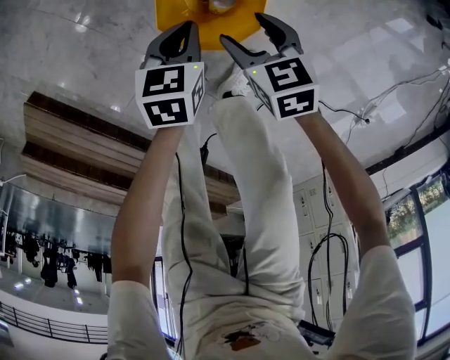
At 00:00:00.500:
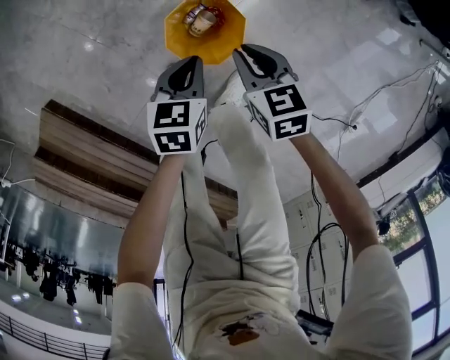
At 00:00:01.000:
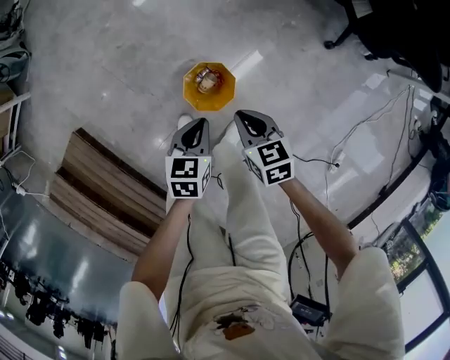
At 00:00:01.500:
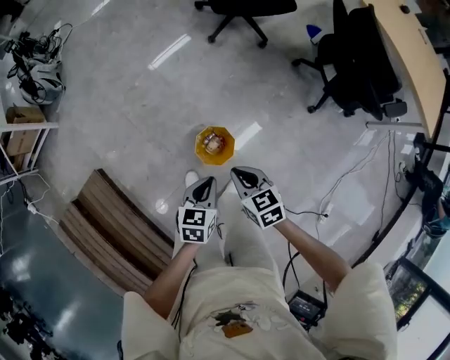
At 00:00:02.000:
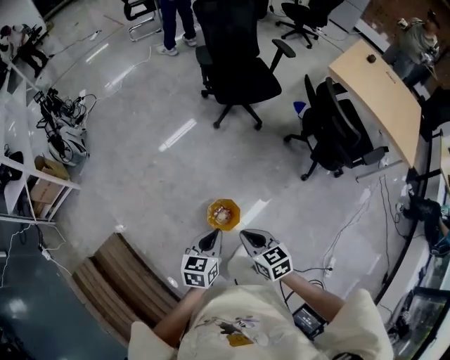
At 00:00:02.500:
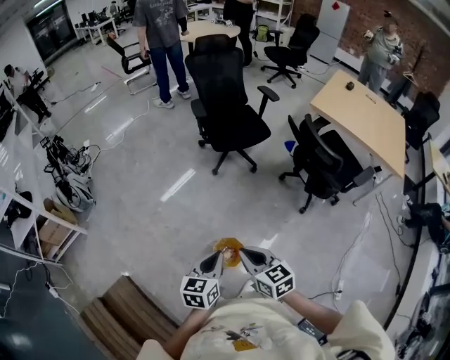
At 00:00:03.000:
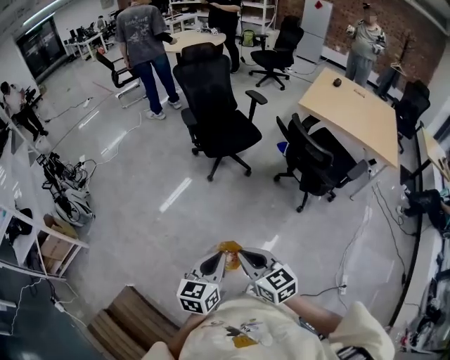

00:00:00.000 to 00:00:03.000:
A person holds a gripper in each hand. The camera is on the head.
00:00:00.000 to 00:00:01.500: Both grippers move upward, some 50 cm. The right gripper closes.
00:00:01.500 to 00:00:03.000: Both grippers move upward, some 35 cm. The right gripper changes its angle by approximately 30 degrees; the left gripper swivels roughly 30 degrees.

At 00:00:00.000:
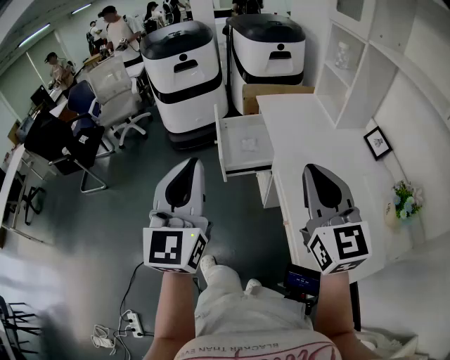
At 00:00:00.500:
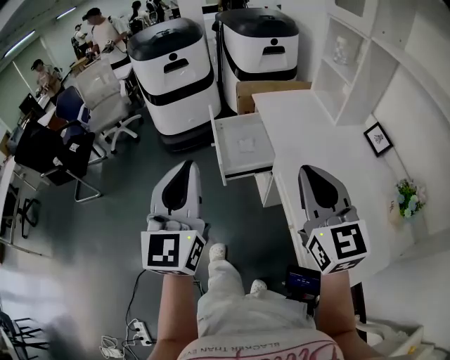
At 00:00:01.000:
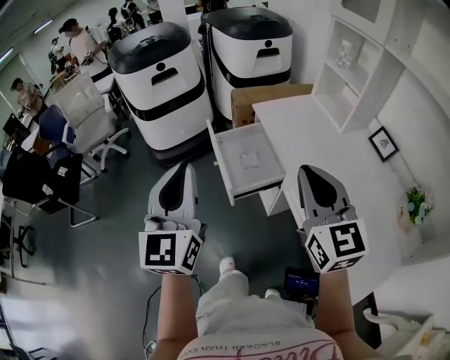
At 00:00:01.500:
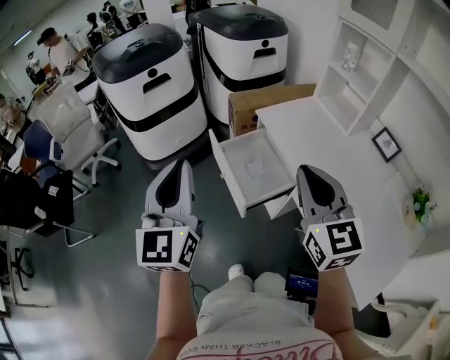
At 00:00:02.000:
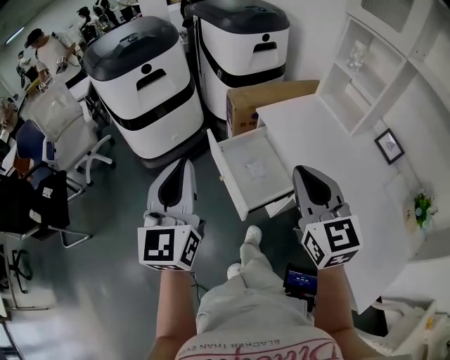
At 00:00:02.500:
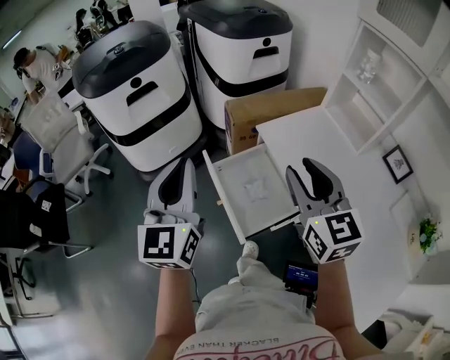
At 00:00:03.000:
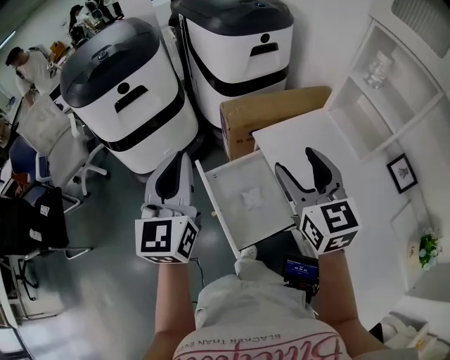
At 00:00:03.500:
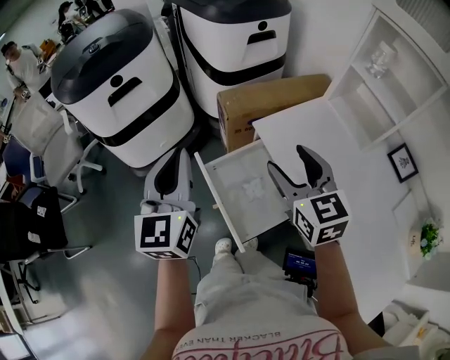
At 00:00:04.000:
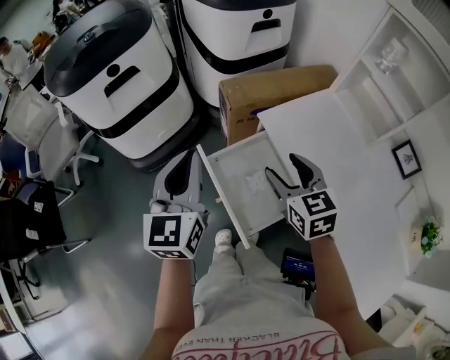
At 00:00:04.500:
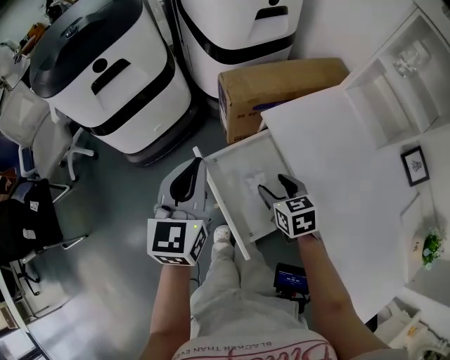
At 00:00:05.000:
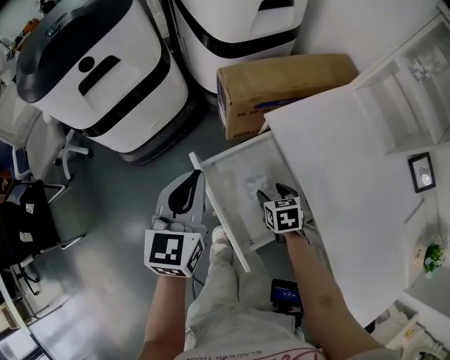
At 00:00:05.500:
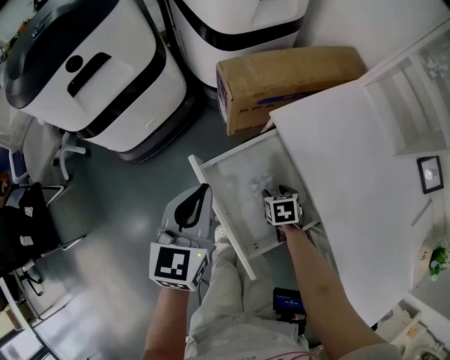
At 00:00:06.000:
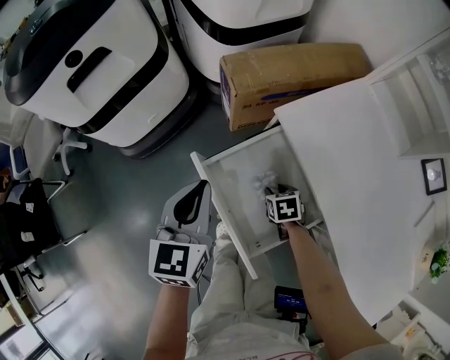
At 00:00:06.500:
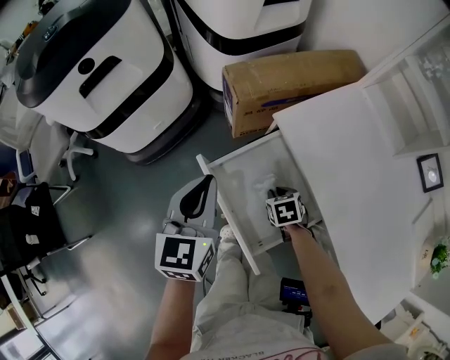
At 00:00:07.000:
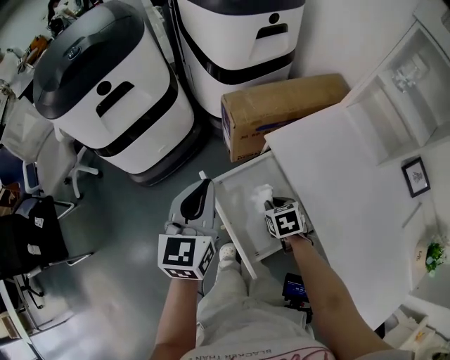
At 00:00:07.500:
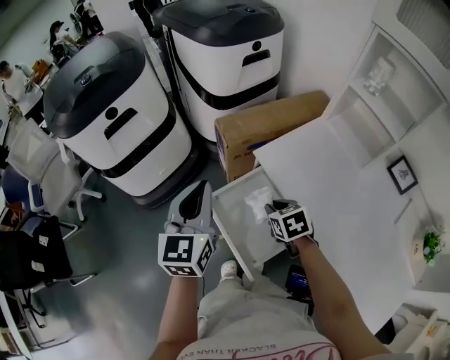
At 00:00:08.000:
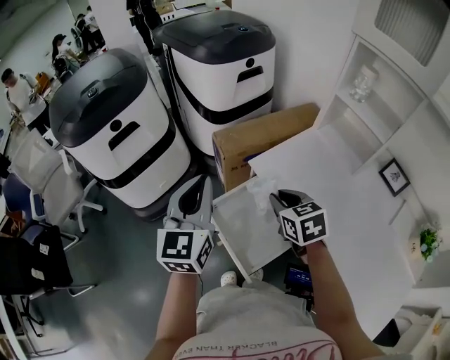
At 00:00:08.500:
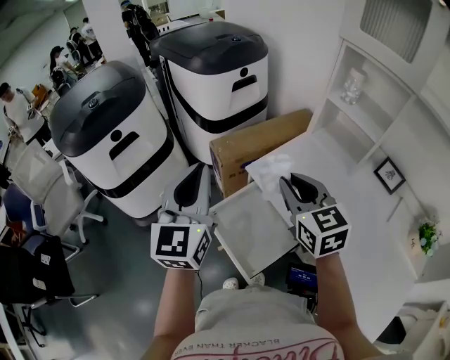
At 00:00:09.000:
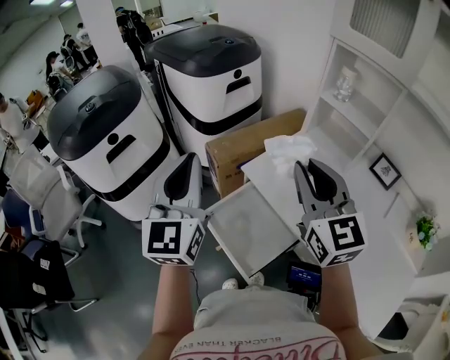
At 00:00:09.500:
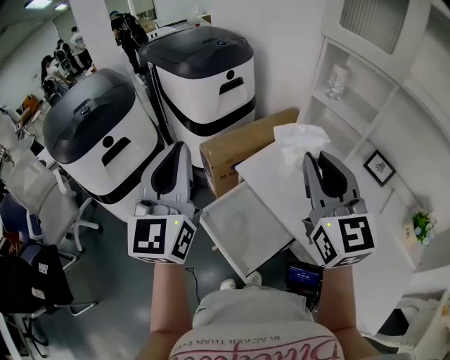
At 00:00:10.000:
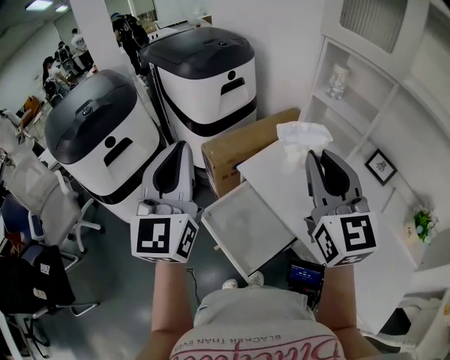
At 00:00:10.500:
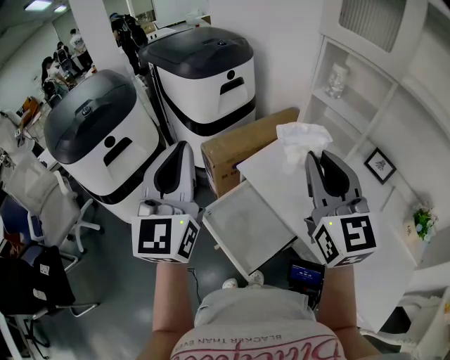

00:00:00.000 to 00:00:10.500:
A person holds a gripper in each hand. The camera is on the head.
00:00:00.000 to 00:00:02.000: The two grippers go approximately 35 cm forward and to the left.
00:00:02.000 to 00:00:04.000: Both grippers travel together forward and downward, about 25 cm. The right gripper swivels approximately 20 degrees, and opens up.
00:00:04.000 to 00:00:06.500: The right gripper heads downward, covering approximately 30 cm, tilts its fingers about 40 degrees downward, and closes up. Meanwhile the left gripper shifts roughly 15 cm downward.
00:00:06.500 to 00:00:08.500: The right gripper goes some 40 cm upward, and angles its fingers upward, by some 50 degrees; the left gripper heads upward, covering roughly 25 cm, and swivels approximately 30 degrees.
00:00:08.500 to 00:00:10.500: The right gripper goes about 15 cm upward, and swivels approximately 30 degrees; the left gripper moves upward, some 10 cm.

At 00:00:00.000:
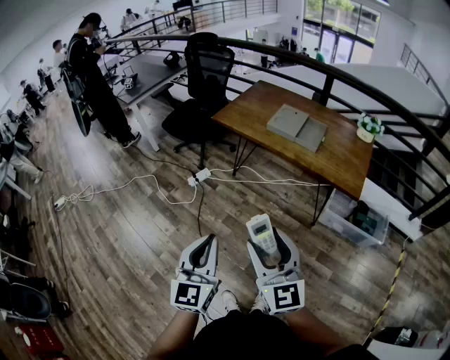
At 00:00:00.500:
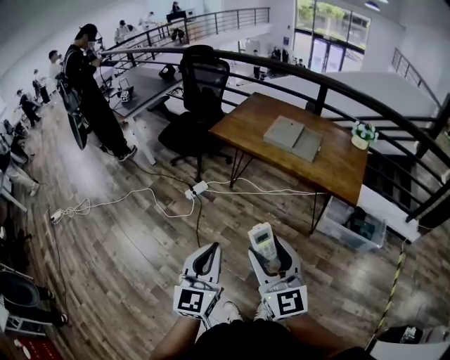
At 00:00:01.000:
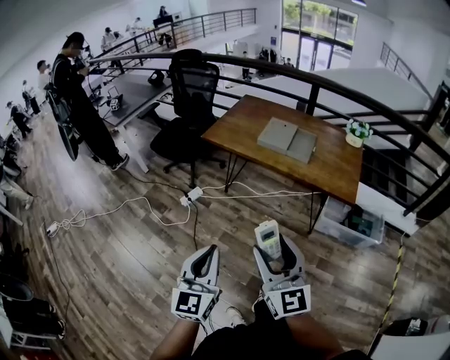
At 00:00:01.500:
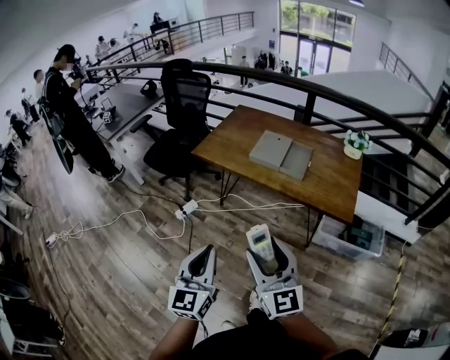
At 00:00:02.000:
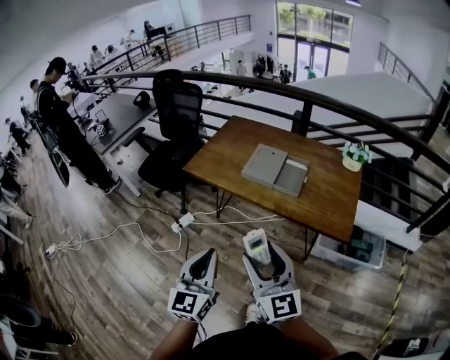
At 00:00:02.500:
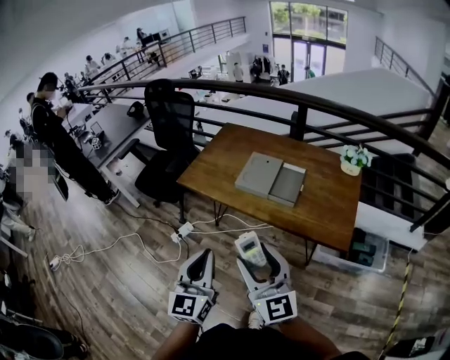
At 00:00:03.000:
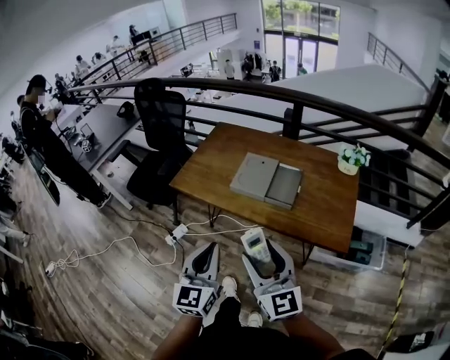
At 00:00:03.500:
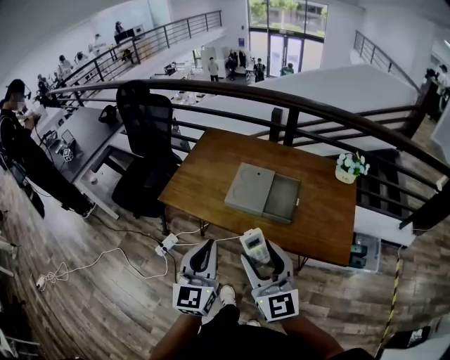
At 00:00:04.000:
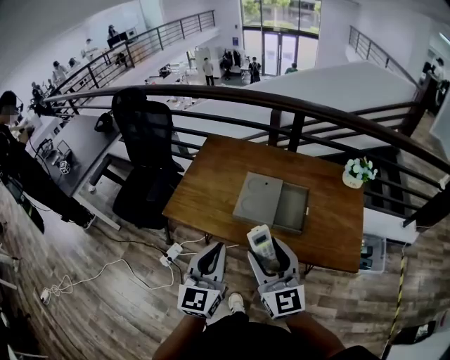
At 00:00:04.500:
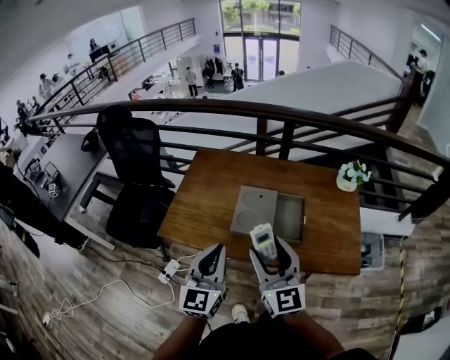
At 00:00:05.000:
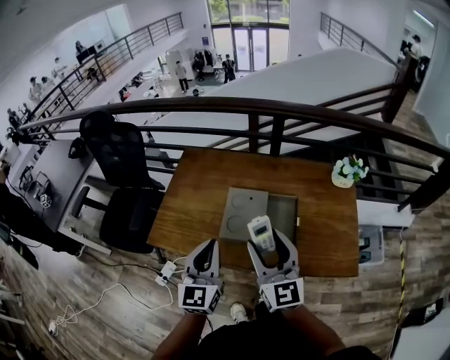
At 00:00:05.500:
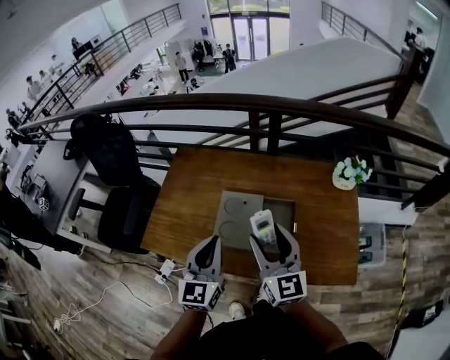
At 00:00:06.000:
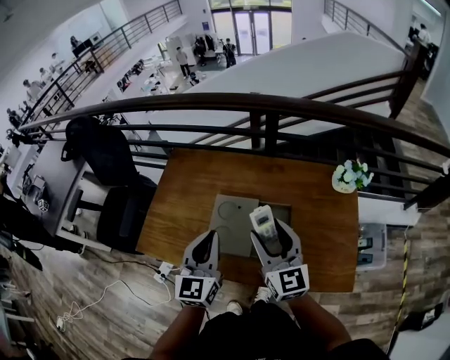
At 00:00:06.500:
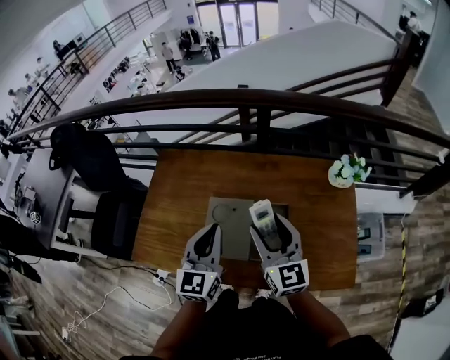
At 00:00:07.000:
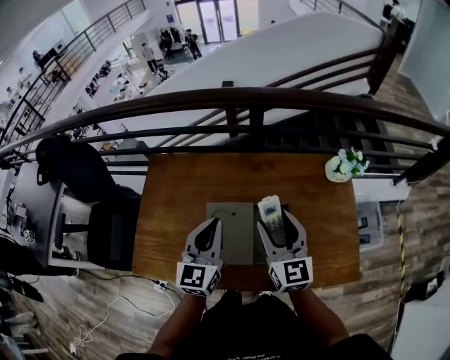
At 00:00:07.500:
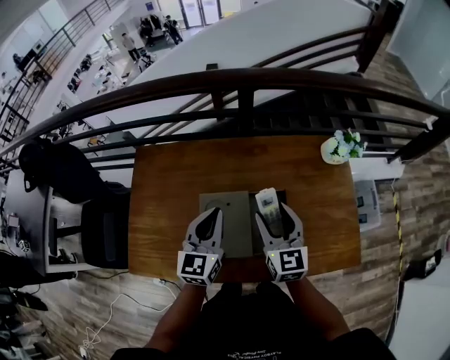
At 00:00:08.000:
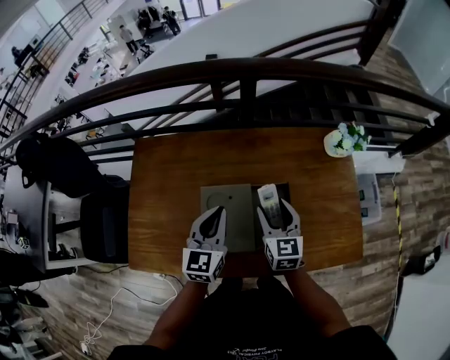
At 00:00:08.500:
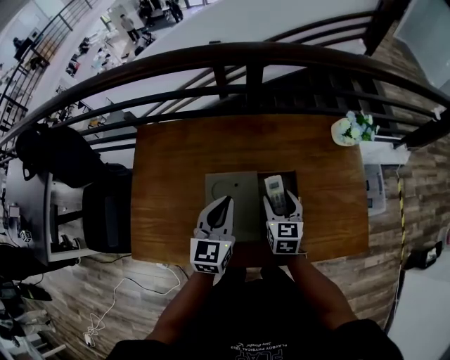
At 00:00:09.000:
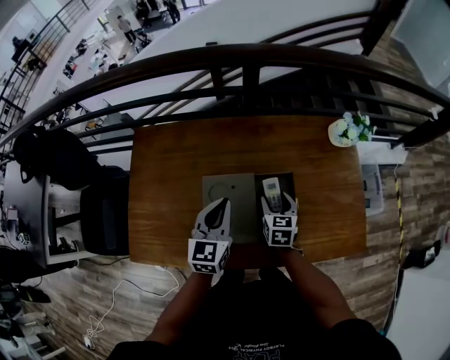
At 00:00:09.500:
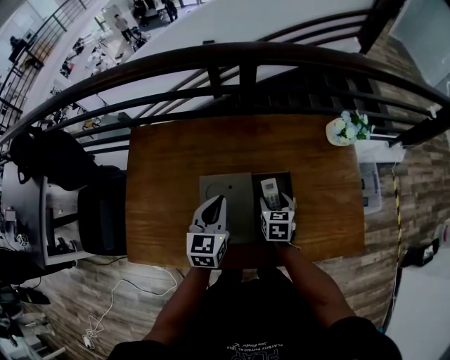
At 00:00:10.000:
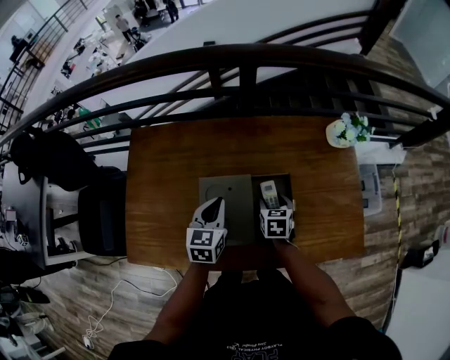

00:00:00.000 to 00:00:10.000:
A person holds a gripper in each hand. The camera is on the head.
00:00:00.000 to 00:00:02.000: Both grippers move forward, approximately 20 cm.
00:00:02.000 to 00:00:04.000: The grippers both shift forward by some 30 cm.
00:00:04.000 to 00:00:06.000: Both grippers move forward and to the right, some 25 cm.
00:00:06.000 to 00:00:08.000: The right gripper is displaced downward and forward by approximately 20 cm, and swivels approximately 30 degrees, while the left gripper shifts roughly 15 cm forward and downward, and rotates approximately 20 degrees.
00:00:08.000 to 00:00:10.000: The left gripper moves downward, about 10 cm; the right gripper is displaced downward by roughly 15 cm, and rotates roughly 30 degrees.

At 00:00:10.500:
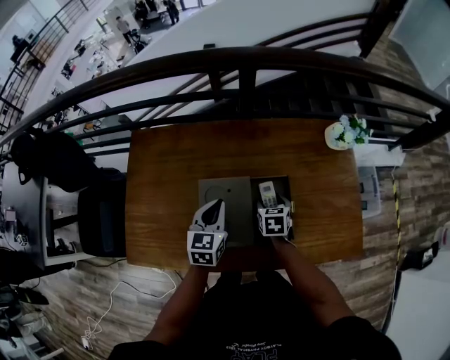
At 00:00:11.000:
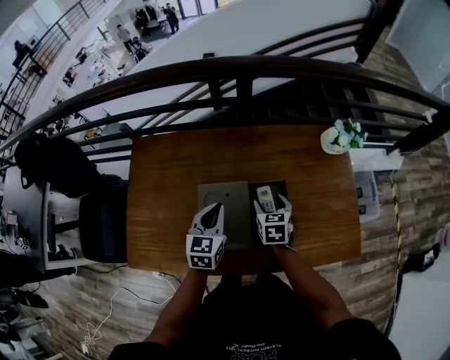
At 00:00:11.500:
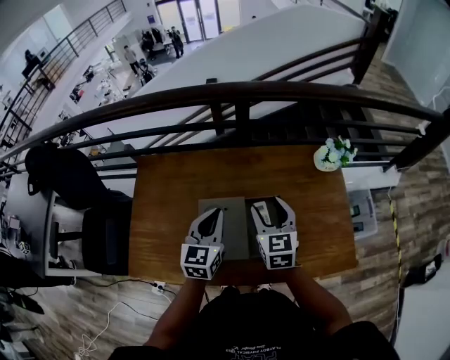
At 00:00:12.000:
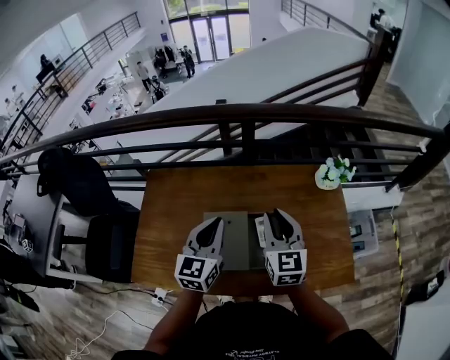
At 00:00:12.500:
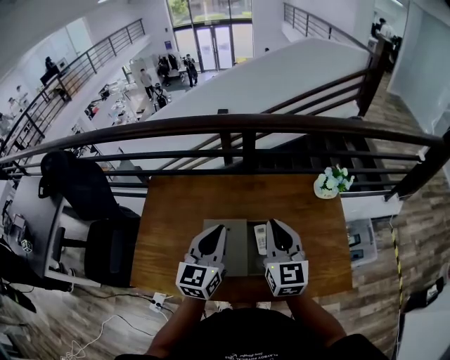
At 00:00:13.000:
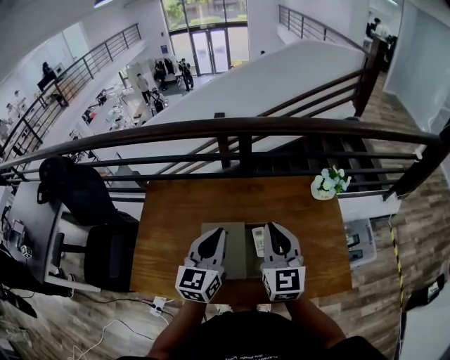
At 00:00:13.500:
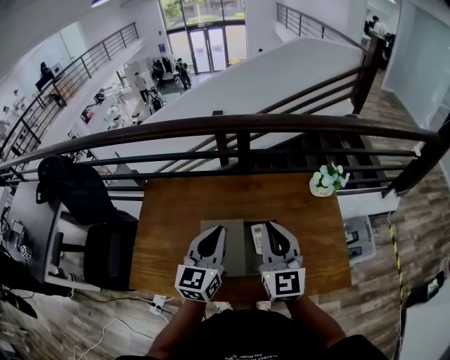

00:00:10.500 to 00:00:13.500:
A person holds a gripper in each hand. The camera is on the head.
00:00:10.500 to 00:00:12.000: The left gripper travels upward by about 15 cm. The right gripper goes about 30 cm upward, tips its fingers upward by roughly 40 degrees, and closes.
00:00:12.000 to 00:00:13.500: The right gripper travels upward by approximately 5 cm.
